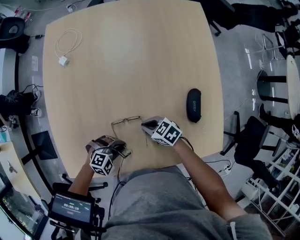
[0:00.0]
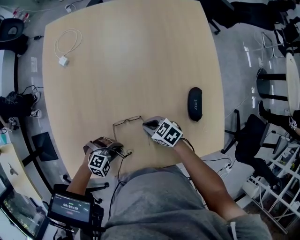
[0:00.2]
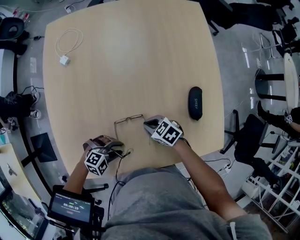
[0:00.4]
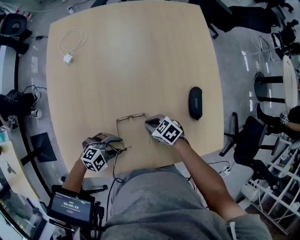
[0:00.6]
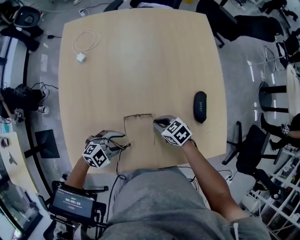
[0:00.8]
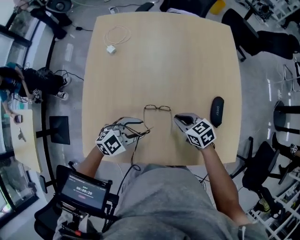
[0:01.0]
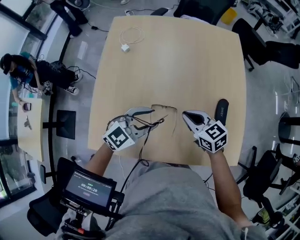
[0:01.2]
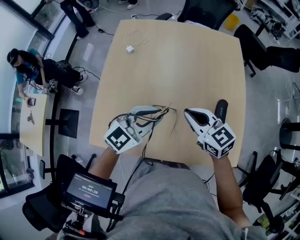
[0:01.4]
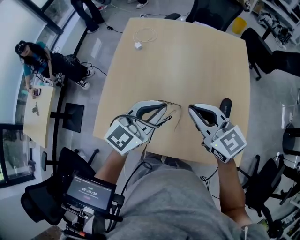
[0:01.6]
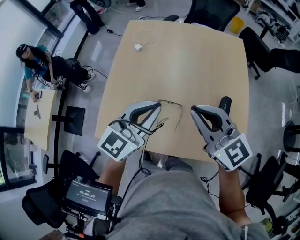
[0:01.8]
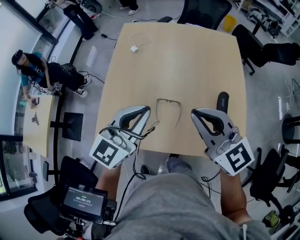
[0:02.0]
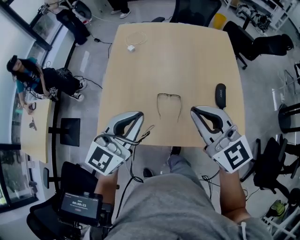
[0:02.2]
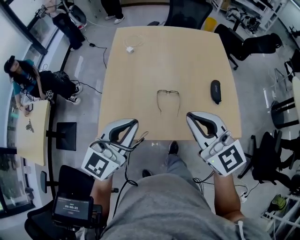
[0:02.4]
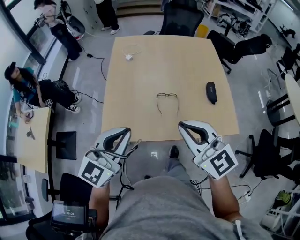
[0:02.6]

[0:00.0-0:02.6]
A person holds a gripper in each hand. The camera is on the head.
0:00.0 to 0:01.2: Both grippers move upward, approximately 20 cm. The left gripper tilts its fingers roughly 30 degrees upward, and opens; the right gripper turns by roughly 30 degrees.
0:01.2 to 0:02.6: The left gripper heads backward, to the left and upward, covering roughly 40 cm, rotates approximately 30 degrees, and closes up; the right gripper moves backward, upward and to the left, about 40 cm, and changes its angle by some 40 degrees.

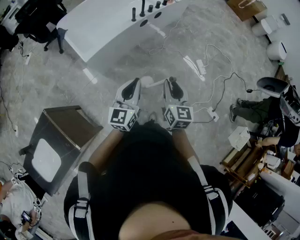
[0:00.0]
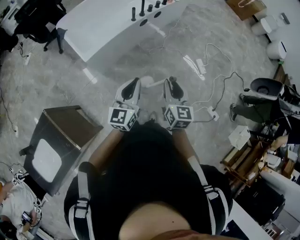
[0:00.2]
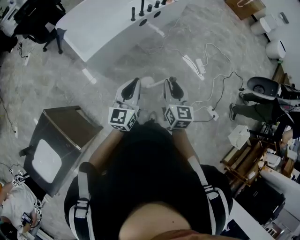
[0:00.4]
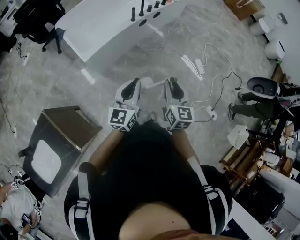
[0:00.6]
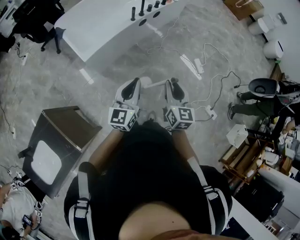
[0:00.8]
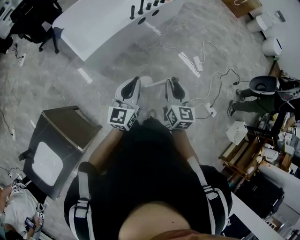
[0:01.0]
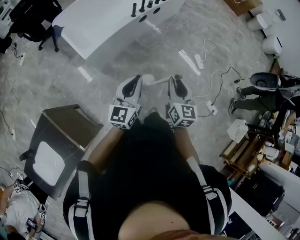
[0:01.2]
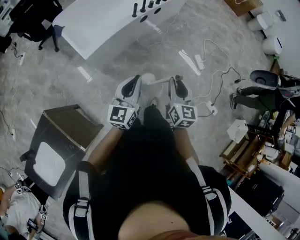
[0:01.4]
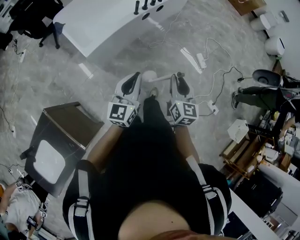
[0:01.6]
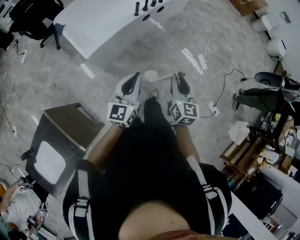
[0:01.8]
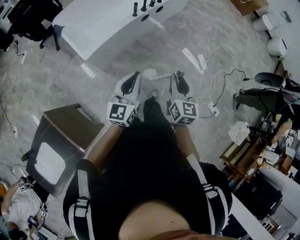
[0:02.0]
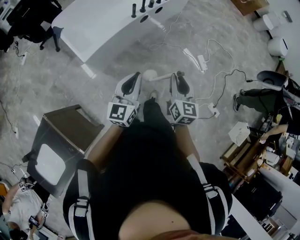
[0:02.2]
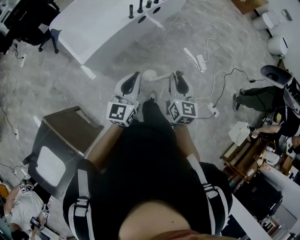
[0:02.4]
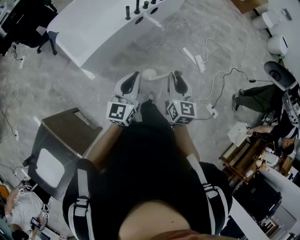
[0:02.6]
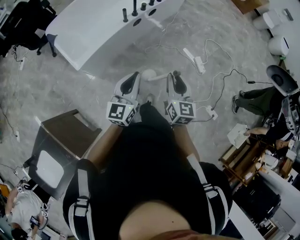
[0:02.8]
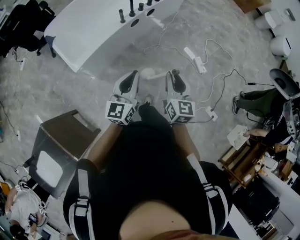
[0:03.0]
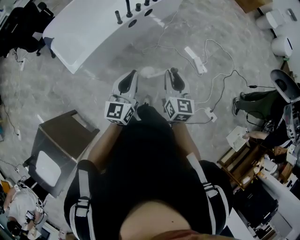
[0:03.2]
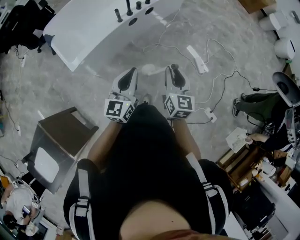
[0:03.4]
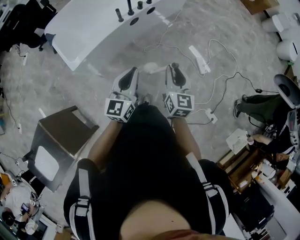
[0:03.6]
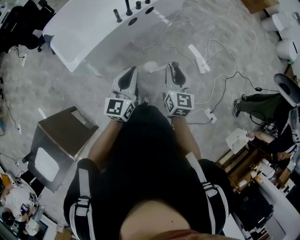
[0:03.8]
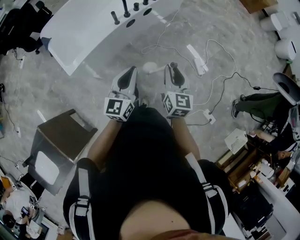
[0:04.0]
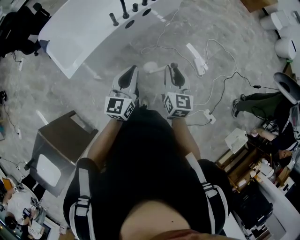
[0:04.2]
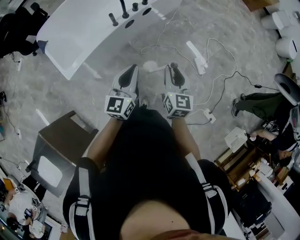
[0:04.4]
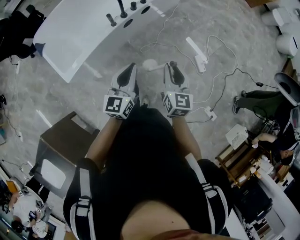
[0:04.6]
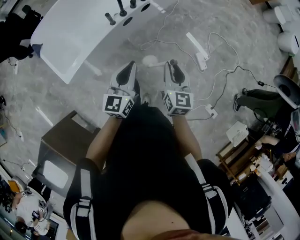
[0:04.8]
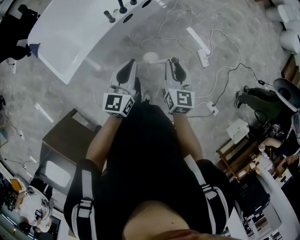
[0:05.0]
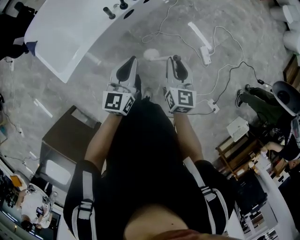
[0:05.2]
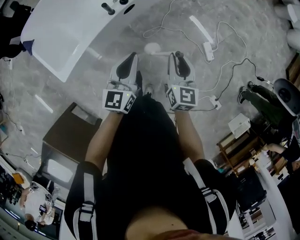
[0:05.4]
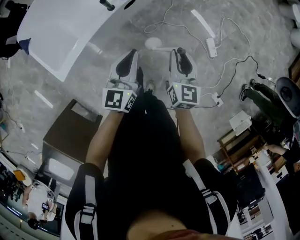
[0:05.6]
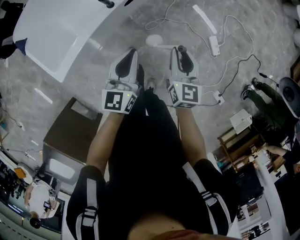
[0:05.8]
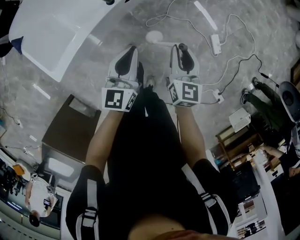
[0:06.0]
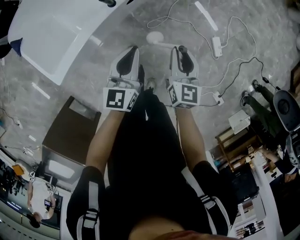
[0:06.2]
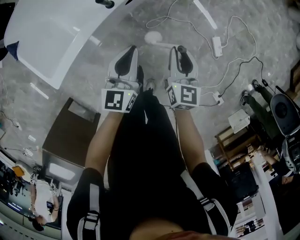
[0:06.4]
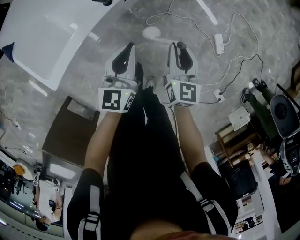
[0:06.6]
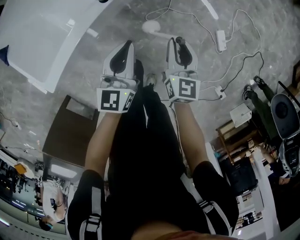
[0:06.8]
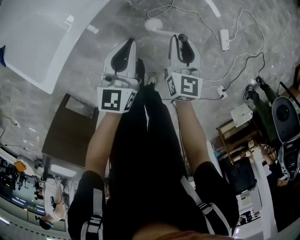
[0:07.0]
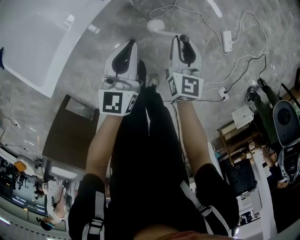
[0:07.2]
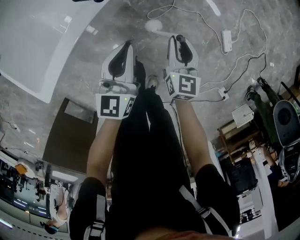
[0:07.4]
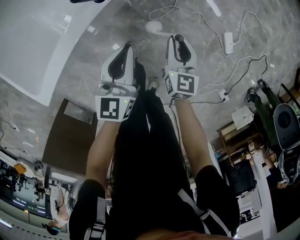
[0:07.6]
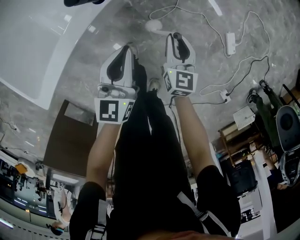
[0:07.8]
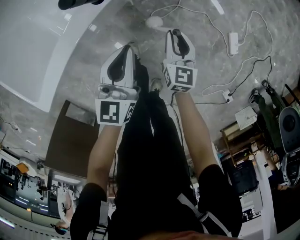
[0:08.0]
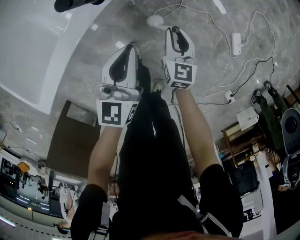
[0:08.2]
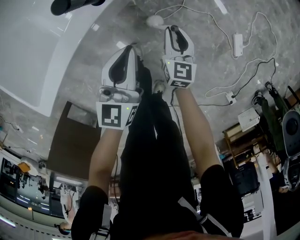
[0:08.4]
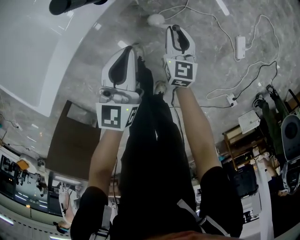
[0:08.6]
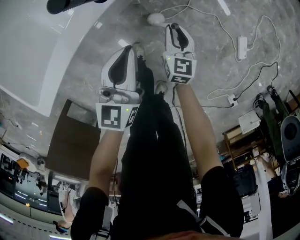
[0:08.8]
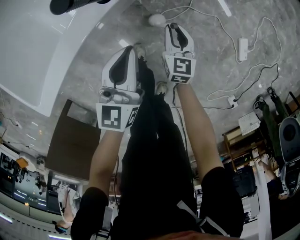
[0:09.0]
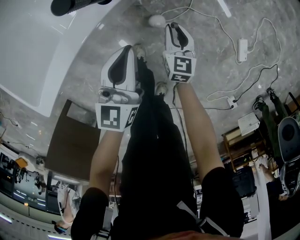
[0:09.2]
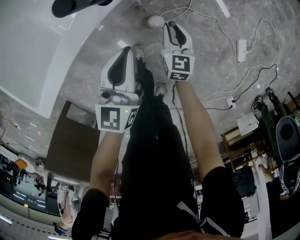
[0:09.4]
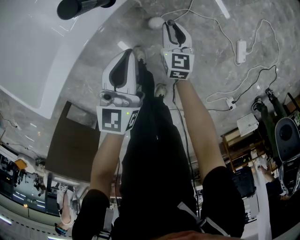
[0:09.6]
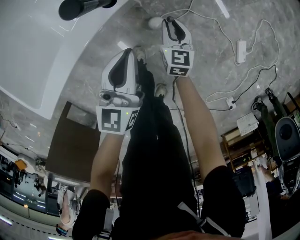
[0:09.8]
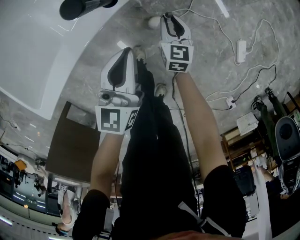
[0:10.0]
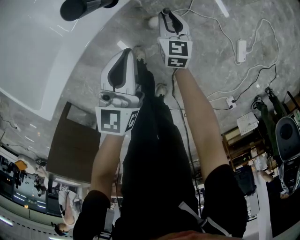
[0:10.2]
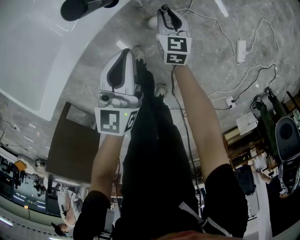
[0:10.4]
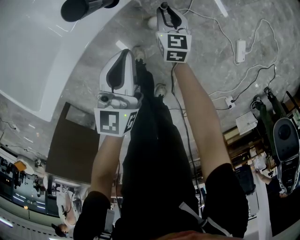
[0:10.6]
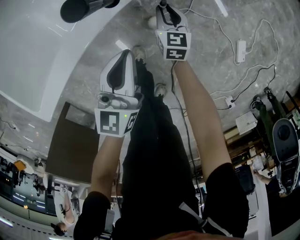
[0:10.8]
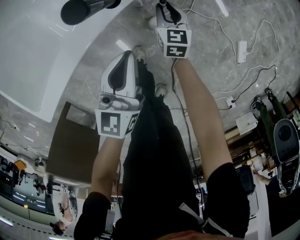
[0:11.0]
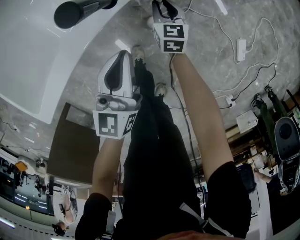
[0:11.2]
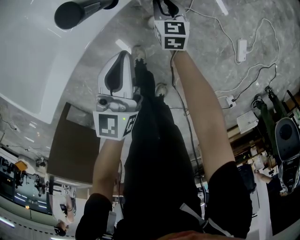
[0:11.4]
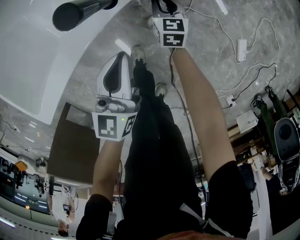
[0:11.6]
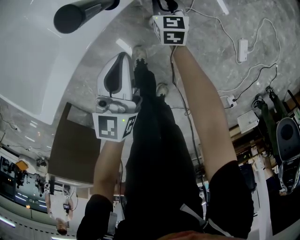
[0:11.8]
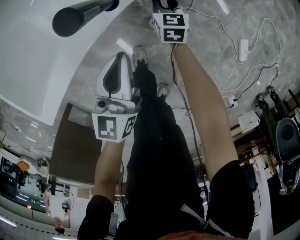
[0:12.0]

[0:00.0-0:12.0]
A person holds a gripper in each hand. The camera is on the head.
0:00.0 to 0:01.6: The left gripper goes approximately 5 cm to the left.
0:01.6 to 0:03.0: Both grippers move forward and to the right, about 20 cm.
0:03.0 to 0:04.4: The two grippers go some 15 cm forward.
0:04.4 to 0:06.0: The left gripper moves forward, downward and to the left, about 25 cm. The right gripper heads downward, forward and to the left, covering about 25 cm.
0:06.0 to 0:07.6: The two grippers go about 20 cm downward.
0:07.6 to 0:09.0: The left gripper goes approximately 5 cm downward, while the right gripper is displaced downward by some 15 cm.
0:09.0 to 0:10.4: The right gripper goes roughly 5 cm forward.
0:10.4 to 0:12.0: The right gripper is displaced forward by roughly 5 cm.

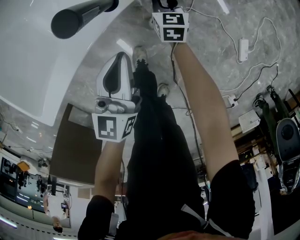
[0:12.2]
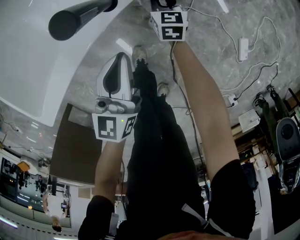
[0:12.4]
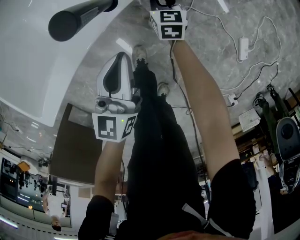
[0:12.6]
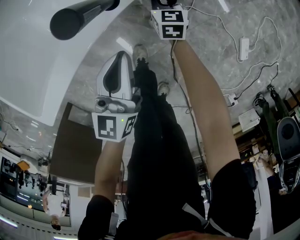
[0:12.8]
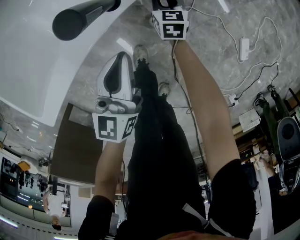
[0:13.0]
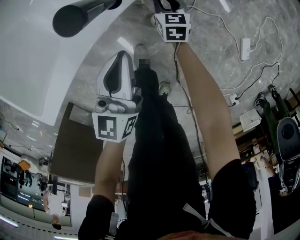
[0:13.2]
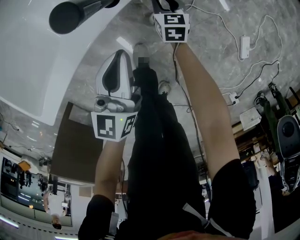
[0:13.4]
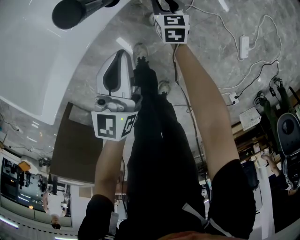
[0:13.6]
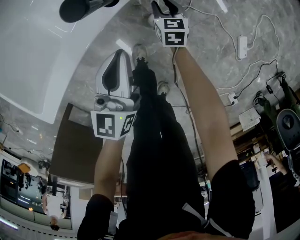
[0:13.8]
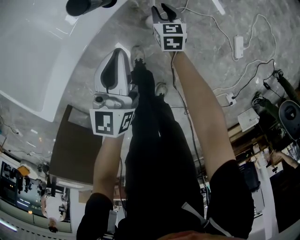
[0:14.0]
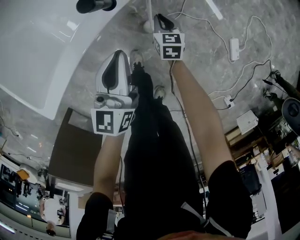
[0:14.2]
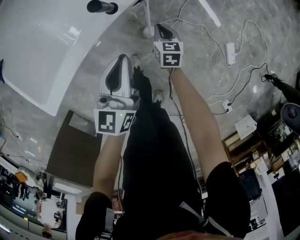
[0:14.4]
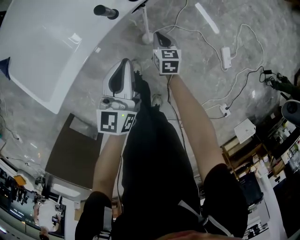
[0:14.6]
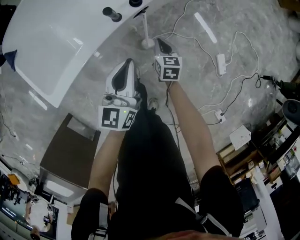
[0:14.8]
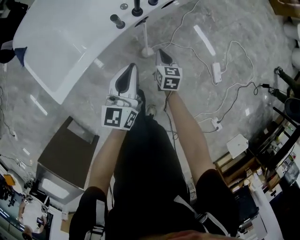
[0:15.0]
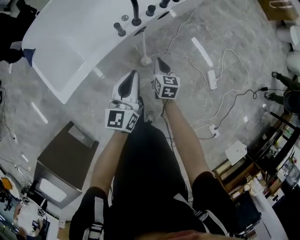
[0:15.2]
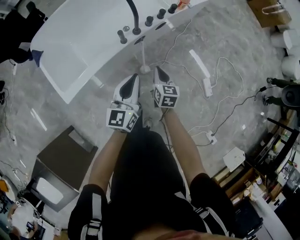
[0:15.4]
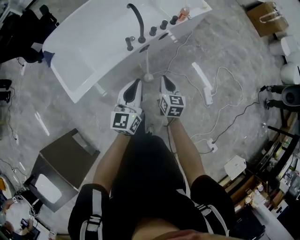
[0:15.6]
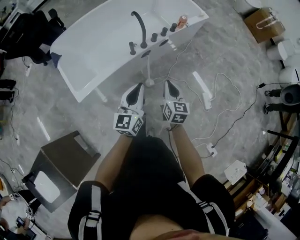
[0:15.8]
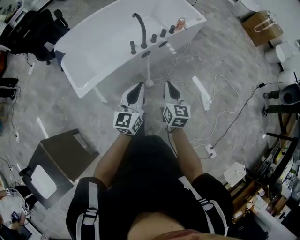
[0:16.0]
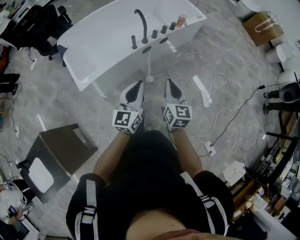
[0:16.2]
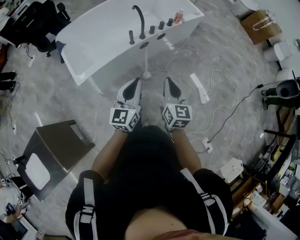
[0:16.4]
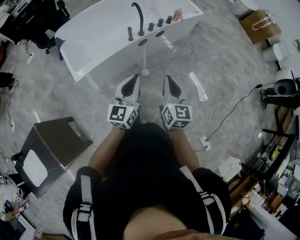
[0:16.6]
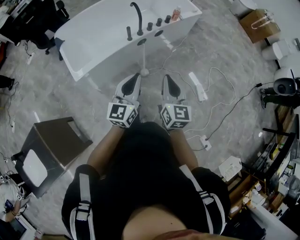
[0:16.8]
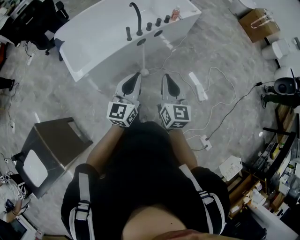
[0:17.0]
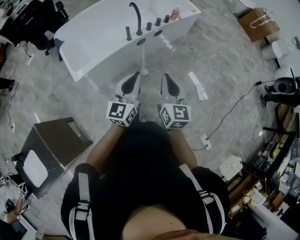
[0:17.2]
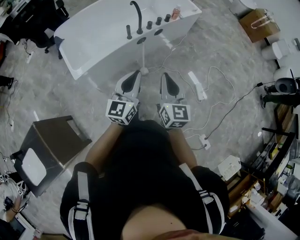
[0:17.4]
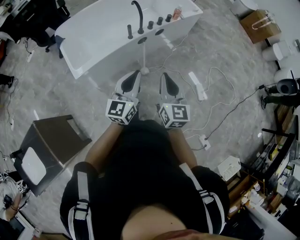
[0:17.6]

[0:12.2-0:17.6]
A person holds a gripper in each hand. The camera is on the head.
0:12.2 to 0:13.6: The grippers move only a little.
0:13.6 to 0:15.0: The left gripper heads upward, covering roughly 25 cm, while the right gripper moves upward and backward, about 30 cm, and closes up.
0:15.0 to 0:16.2: The grippers both shift upward and backward by roughly 40 cm. The right gripper swivels some 30 degrees.
0:16.2 to 0:17.6: The left gripper changes place by approximately 5 cm; the right gripper heads backward and upward, covering approximately 10 cm.

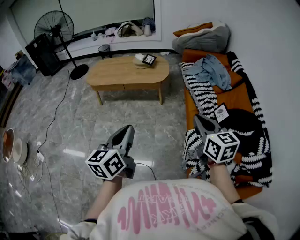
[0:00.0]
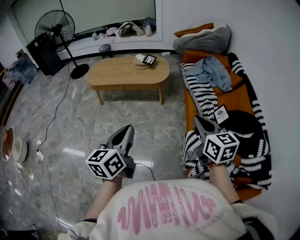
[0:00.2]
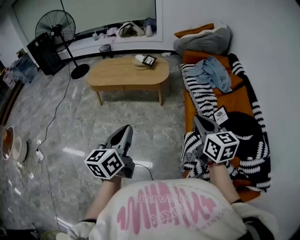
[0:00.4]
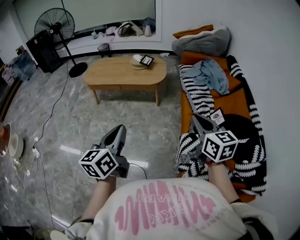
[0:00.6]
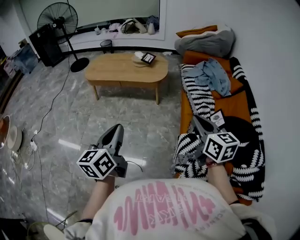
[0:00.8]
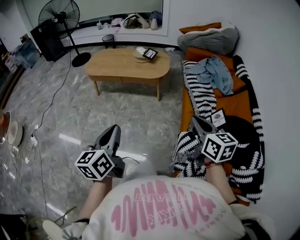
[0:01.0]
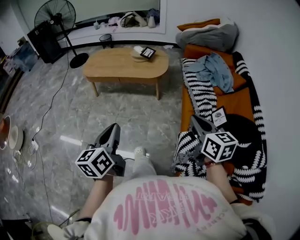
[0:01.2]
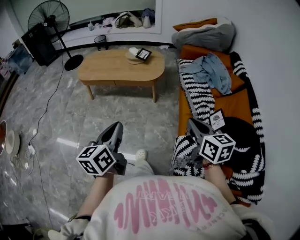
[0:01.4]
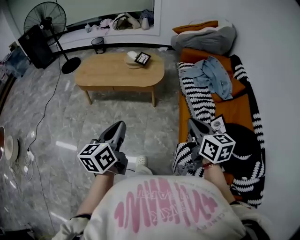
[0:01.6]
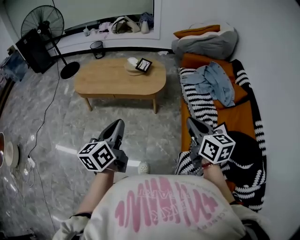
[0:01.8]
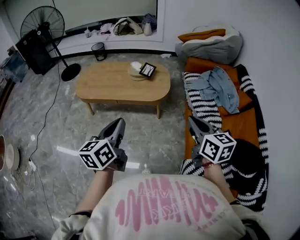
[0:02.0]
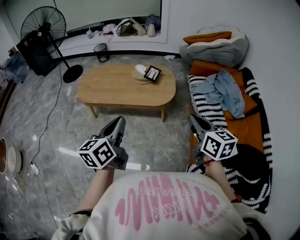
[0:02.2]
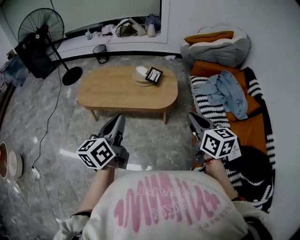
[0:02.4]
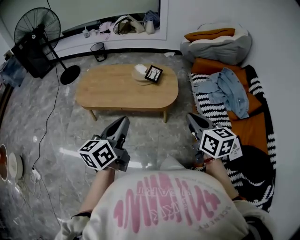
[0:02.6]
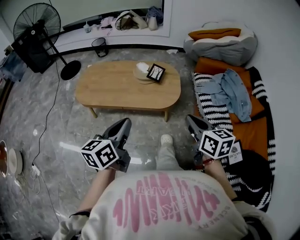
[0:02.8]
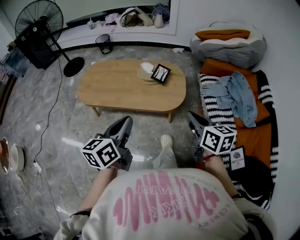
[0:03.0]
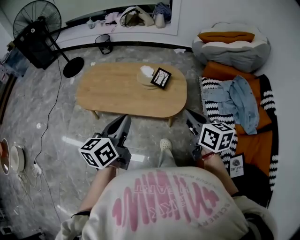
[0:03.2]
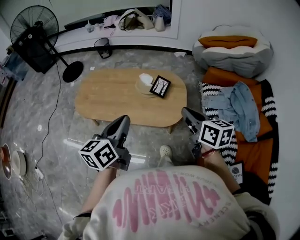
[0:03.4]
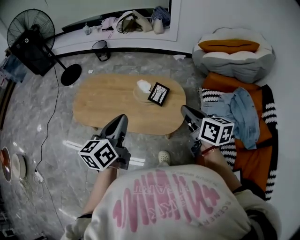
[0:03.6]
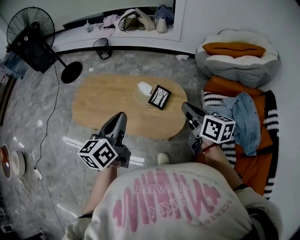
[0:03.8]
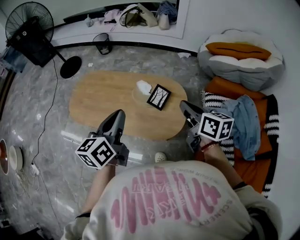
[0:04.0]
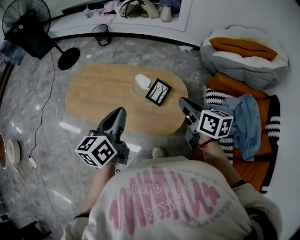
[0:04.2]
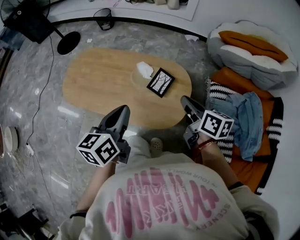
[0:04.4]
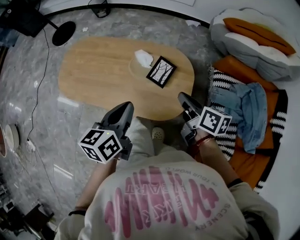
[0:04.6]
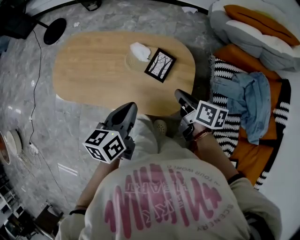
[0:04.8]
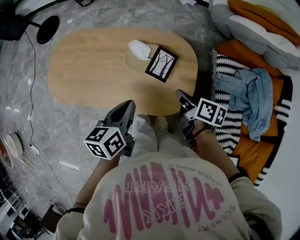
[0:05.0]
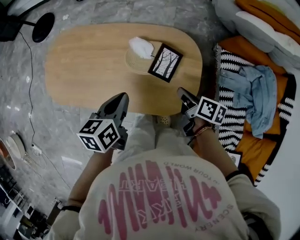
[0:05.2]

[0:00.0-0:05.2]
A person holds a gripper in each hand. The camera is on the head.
0:00.0 to 0:01.8: Both grippers travel together forward, some 25 cm.
0:01.8 to 0:03.4: Both grippers move forward, roughly 40 cm.
0:03.4 to 0:05.2: The left gripper travels forward and downward by approximately 35 cm, and changes its angle by about 30 degrees. Meanwhile the right gripper moves downward and forward, some 35 cm, and changes its angle by roughly 40 degrees.
